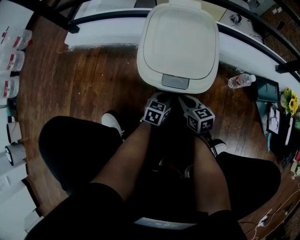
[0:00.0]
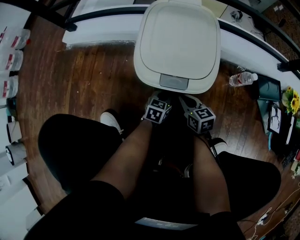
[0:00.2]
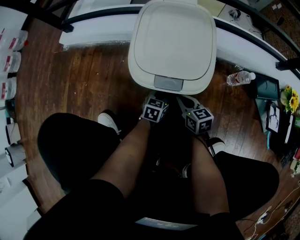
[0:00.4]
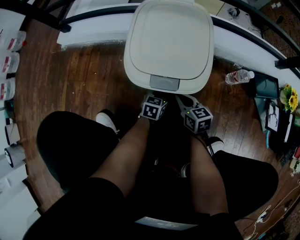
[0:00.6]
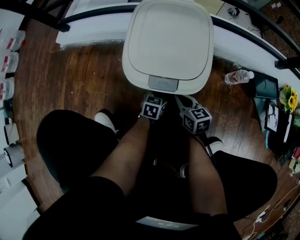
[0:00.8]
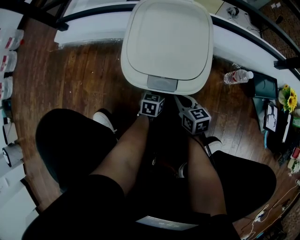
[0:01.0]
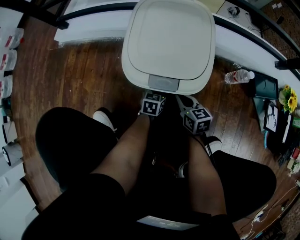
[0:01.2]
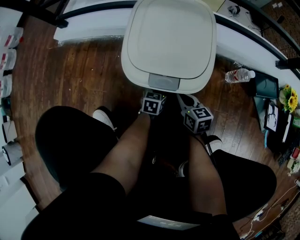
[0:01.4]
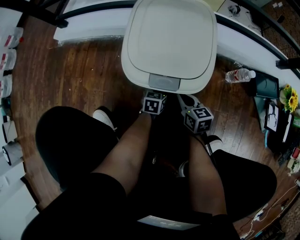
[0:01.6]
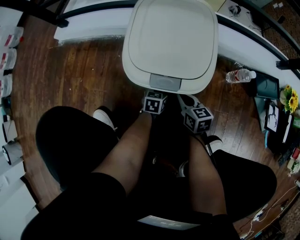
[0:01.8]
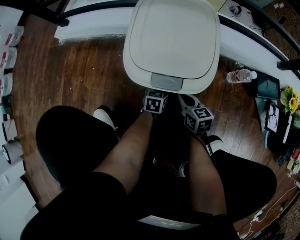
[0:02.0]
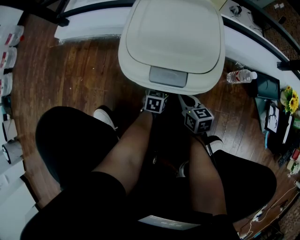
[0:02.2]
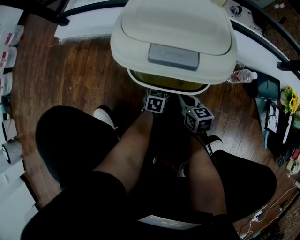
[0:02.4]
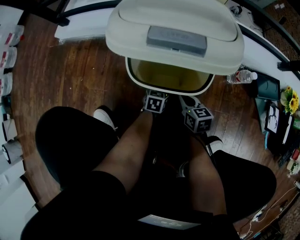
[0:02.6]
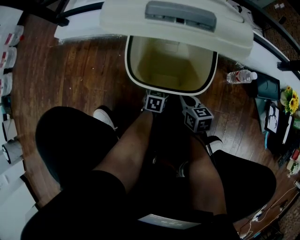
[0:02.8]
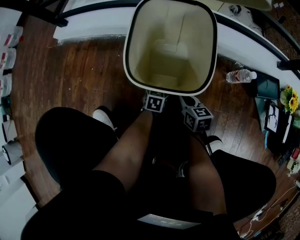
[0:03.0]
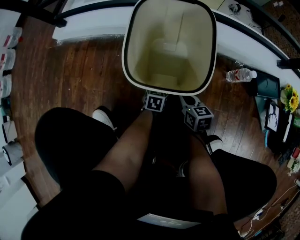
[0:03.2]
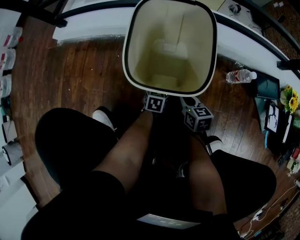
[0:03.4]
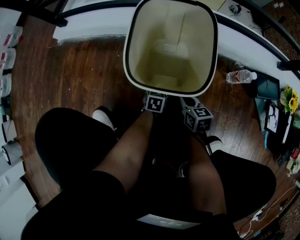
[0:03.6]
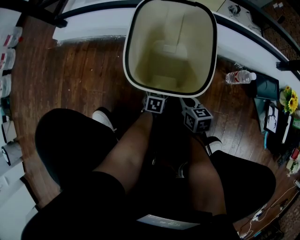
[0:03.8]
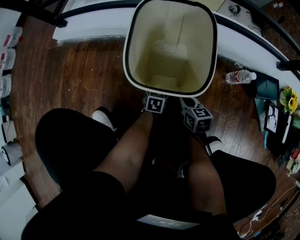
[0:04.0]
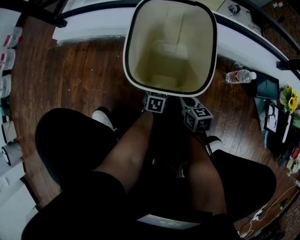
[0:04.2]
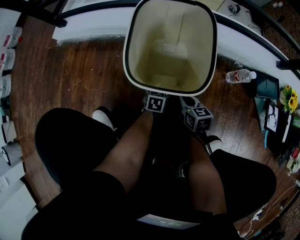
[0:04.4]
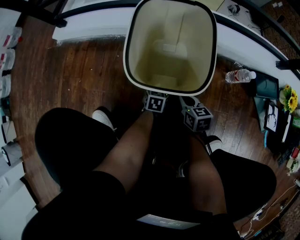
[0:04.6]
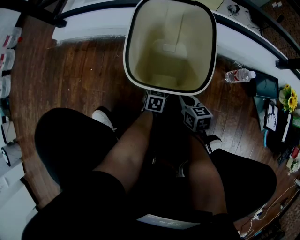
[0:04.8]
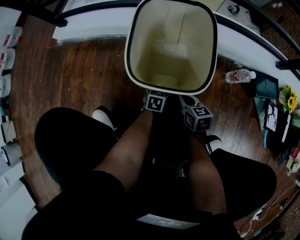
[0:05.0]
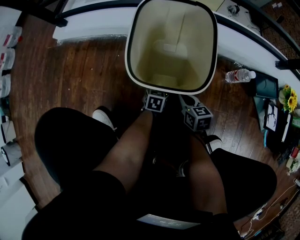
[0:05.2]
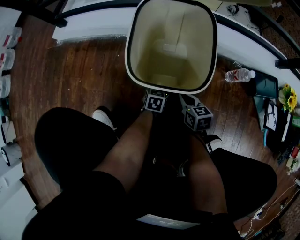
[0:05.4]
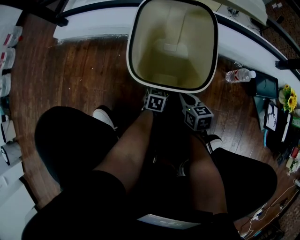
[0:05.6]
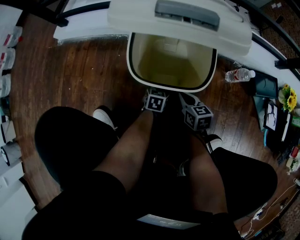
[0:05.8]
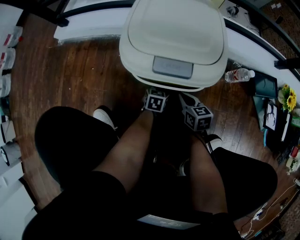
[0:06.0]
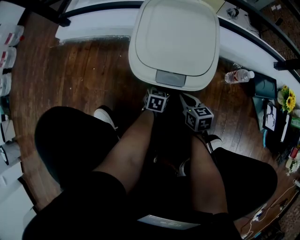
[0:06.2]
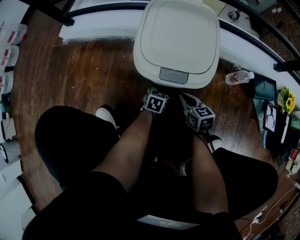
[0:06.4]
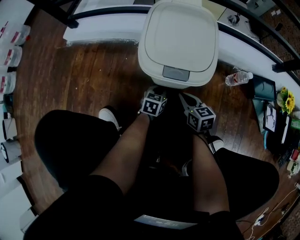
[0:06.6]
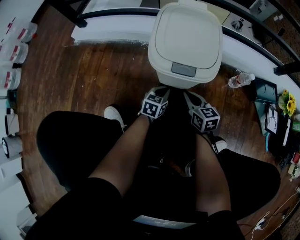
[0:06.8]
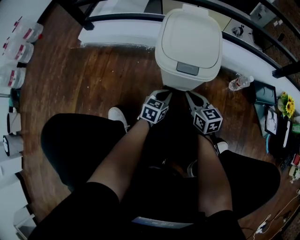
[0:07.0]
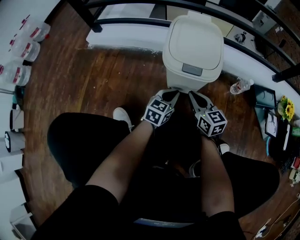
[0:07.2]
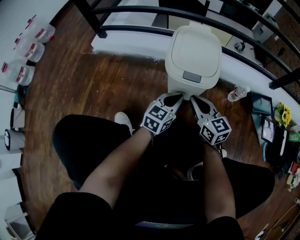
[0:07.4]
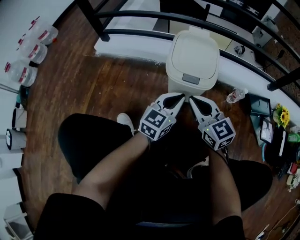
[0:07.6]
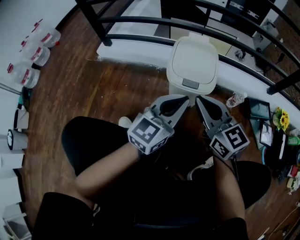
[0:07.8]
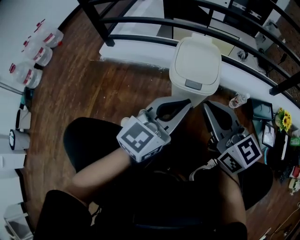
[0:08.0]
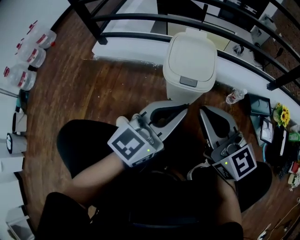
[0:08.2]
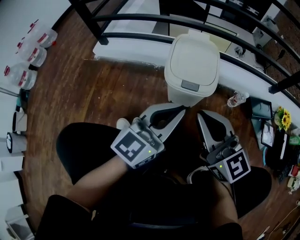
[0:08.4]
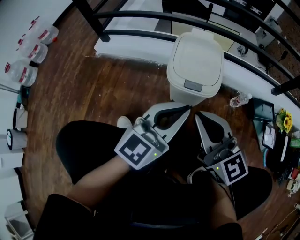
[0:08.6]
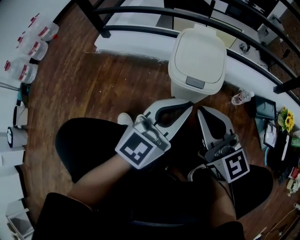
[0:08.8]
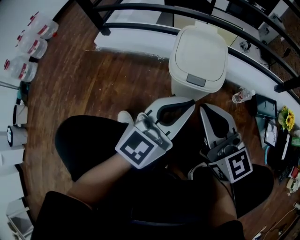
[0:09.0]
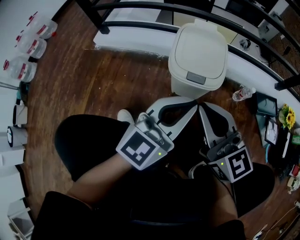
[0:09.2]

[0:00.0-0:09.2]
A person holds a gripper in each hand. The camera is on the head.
0:00.0 to 0:01.6: The left gripper travels downward by roughly 5 cm.
0:01.6 to 0:03.0: There are only small adjustments of the grippers.
0:03.0 to 0:04.6: Both grippers stay about where they are.
0:04.6 to 0:06.2: The grippers move only a little.
0:06.2 to 0:07.6: The two grippers go about 35 cm upward. The left gripper points its fingers some 40 degrees further upward. Meanwhile the right gripper changes its angle by roughly 40 degrees.
0:07.6 to 0:09.2: The grippers both shift upward by approximately 10 cm.

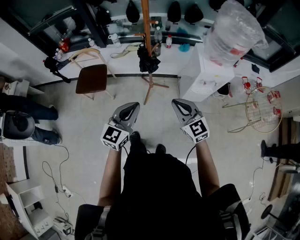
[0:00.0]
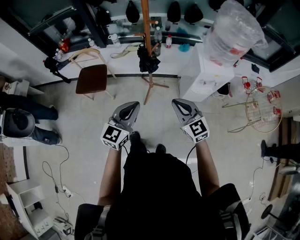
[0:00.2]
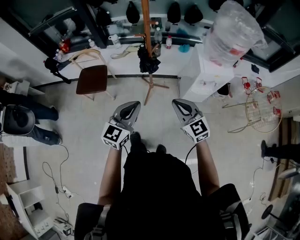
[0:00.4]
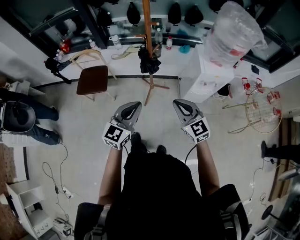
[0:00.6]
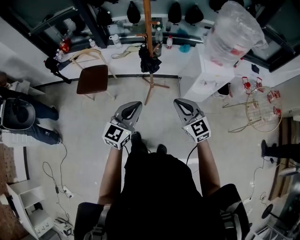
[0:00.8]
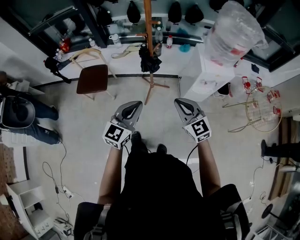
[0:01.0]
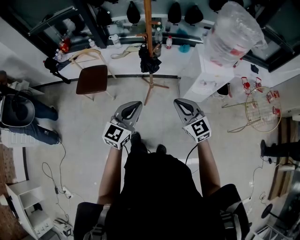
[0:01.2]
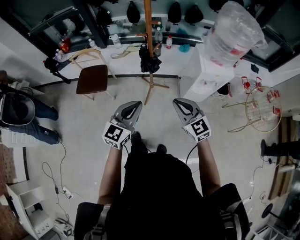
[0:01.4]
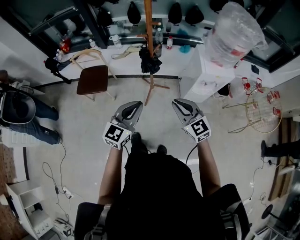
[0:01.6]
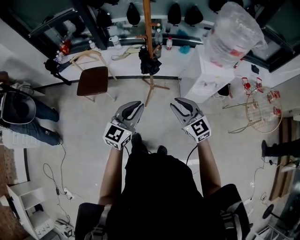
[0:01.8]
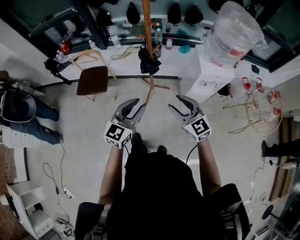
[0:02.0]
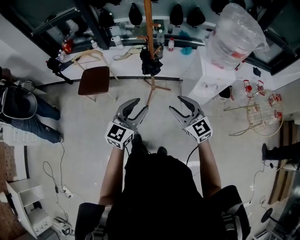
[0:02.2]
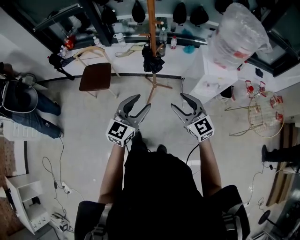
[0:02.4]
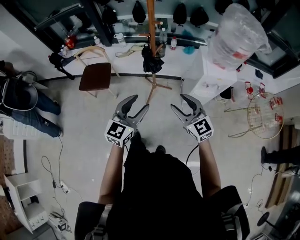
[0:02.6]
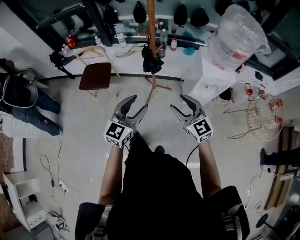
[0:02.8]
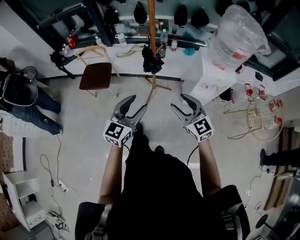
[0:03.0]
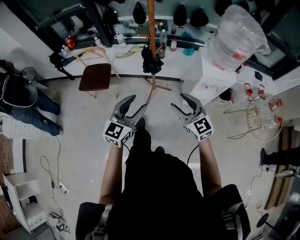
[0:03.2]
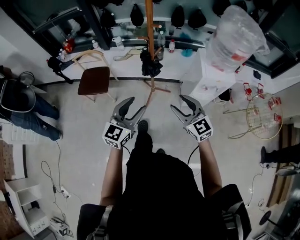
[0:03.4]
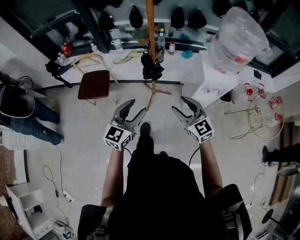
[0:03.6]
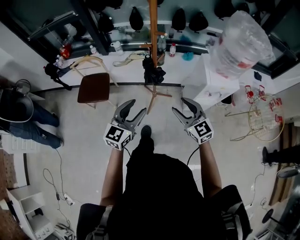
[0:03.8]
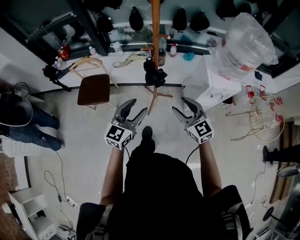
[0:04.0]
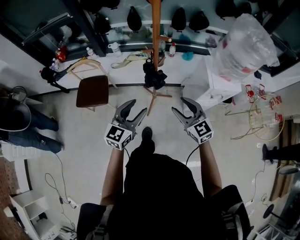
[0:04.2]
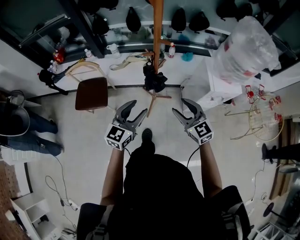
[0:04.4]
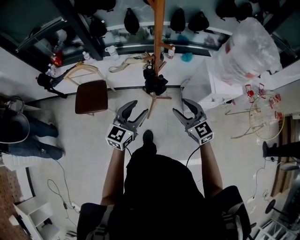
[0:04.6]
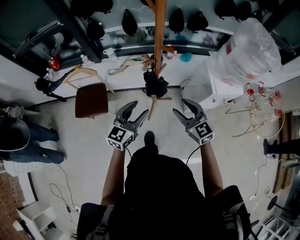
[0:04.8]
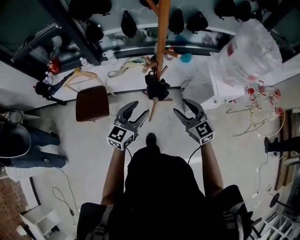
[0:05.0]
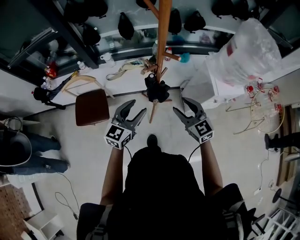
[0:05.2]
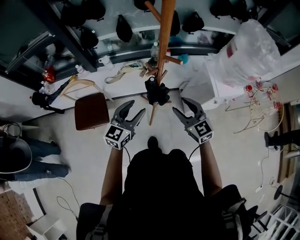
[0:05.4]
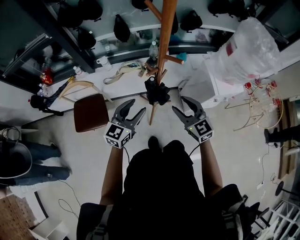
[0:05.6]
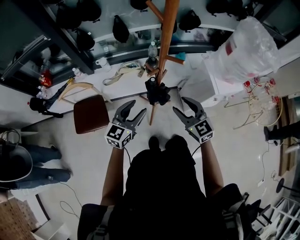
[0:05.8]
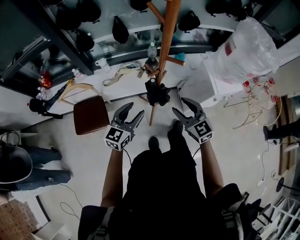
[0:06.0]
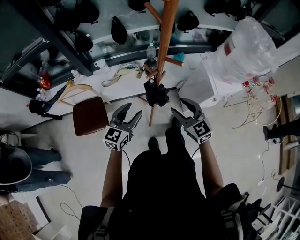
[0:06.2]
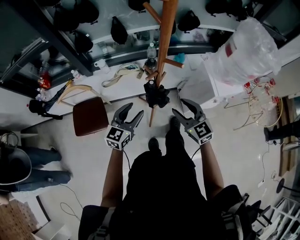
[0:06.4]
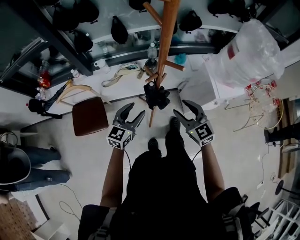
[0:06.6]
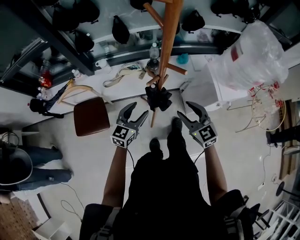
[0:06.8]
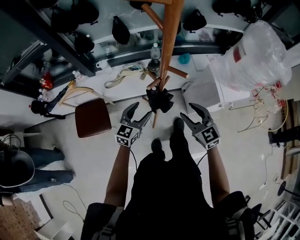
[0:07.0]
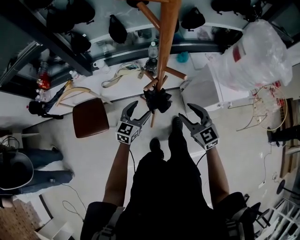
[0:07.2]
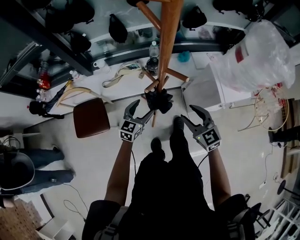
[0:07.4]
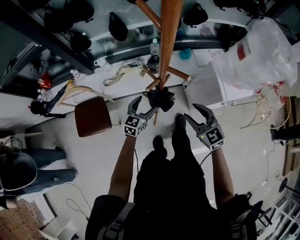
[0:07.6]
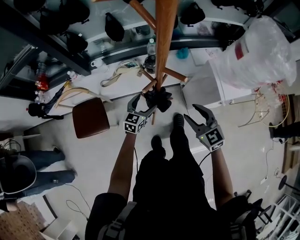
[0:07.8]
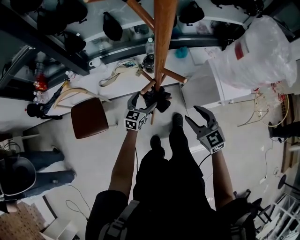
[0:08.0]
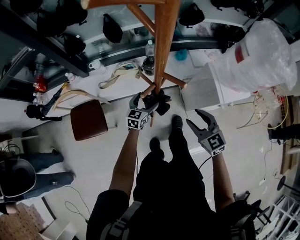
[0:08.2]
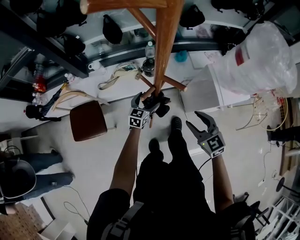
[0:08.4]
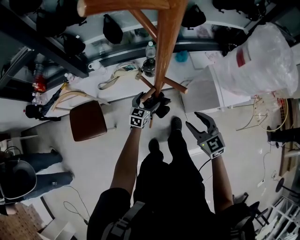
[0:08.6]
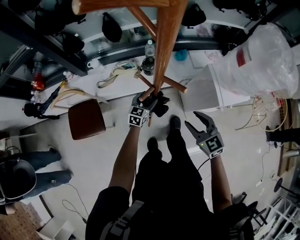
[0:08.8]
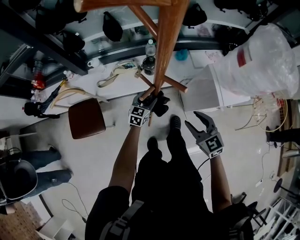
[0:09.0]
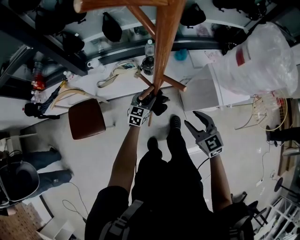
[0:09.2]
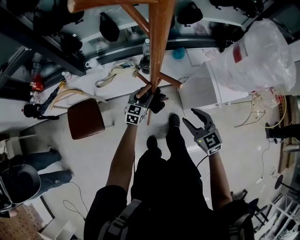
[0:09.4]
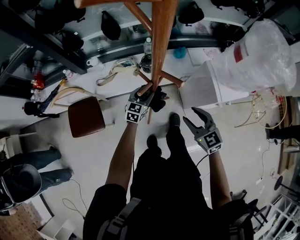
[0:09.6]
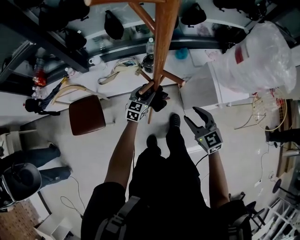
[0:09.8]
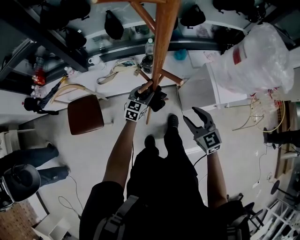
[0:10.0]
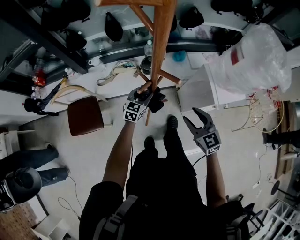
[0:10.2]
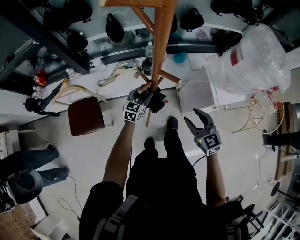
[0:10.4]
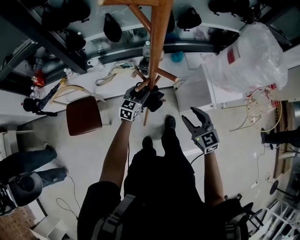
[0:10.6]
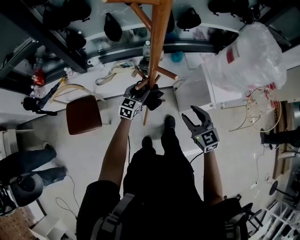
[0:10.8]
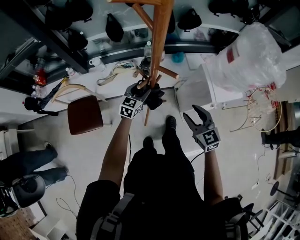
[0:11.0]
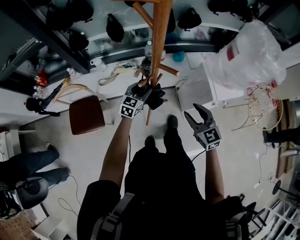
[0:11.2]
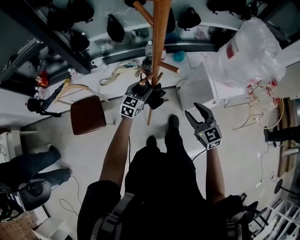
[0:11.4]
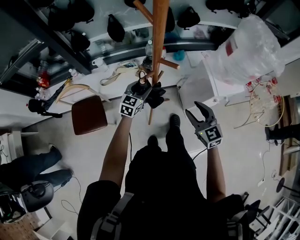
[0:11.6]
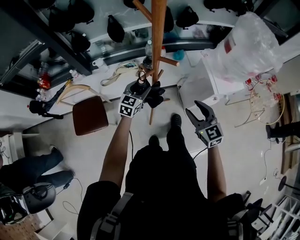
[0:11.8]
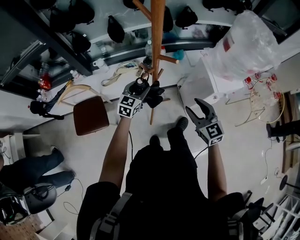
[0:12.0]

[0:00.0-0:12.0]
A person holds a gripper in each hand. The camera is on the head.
0:00.0 to 0:01.6: Both grippers stay put.
0:01.6 to 0:03.0: The left gripper opens its fingers, while the right gripper opens.
0:03.0 to 0:04.4: The two grippers go about 15 cm forward.
0:04.4 to 0:06.0: Both grippers move forward and to the left, about 15 cm.
0:06.0 to 0:07.6: The left gripper heads downward and forward, covering about 20 cm. The right gripper moves to the right, roughly 5 cm.
0:07.6 to 0:09.0: The left gripper is displaced forward and downward by approximately 10 cm.
0:09.0 to 0:10.4: The left gripper goes about 5 cm upward.
0:10.4 to 0:12.0: The left gripper goes some 5 cm upward.

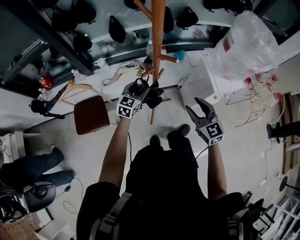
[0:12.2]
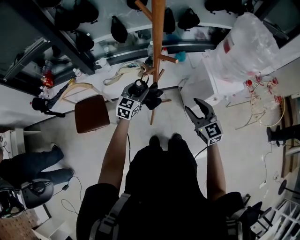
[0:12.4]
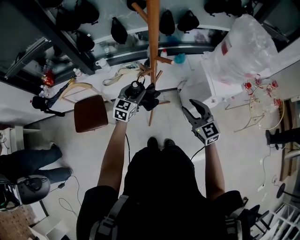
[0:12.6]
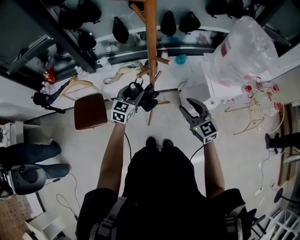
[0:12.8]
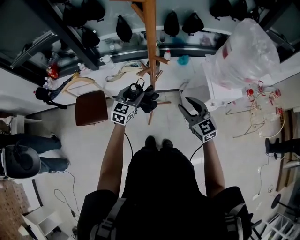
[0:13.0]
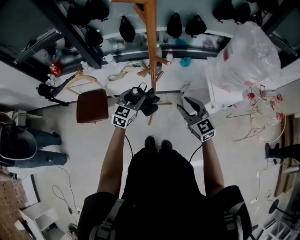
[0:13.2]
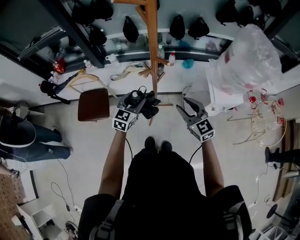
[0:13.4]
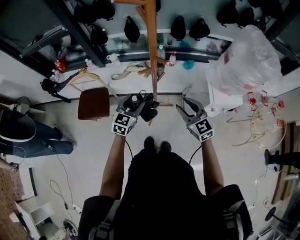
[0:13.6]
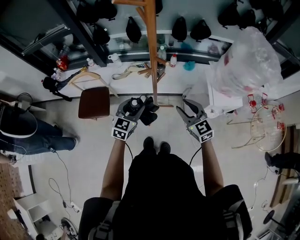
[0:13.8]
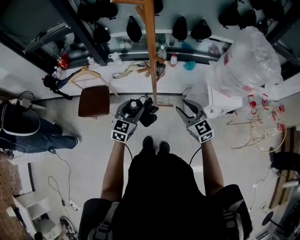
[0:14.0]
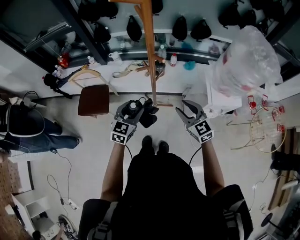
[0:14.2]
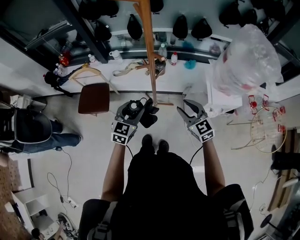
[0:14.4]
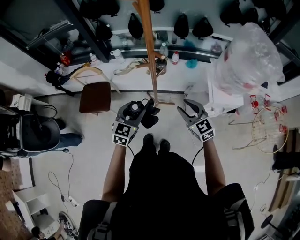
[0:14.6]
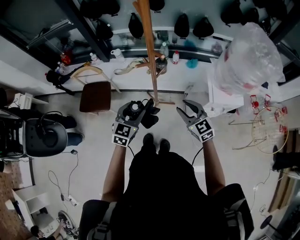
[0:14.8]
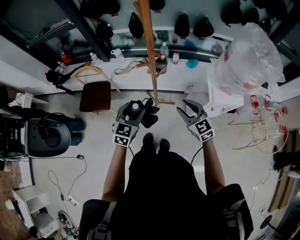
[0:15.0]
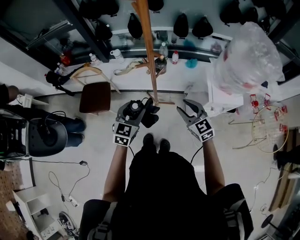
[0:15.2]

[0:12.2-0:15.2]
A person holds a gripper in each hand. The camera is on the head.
0:12.2 to 0:13.8: The left gripper goes about 15 cm backward and upward.
0:13.8 to 0:15.2: The left gripper moves about 5 cm.
